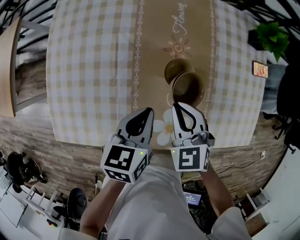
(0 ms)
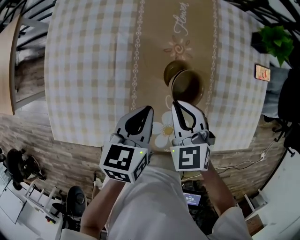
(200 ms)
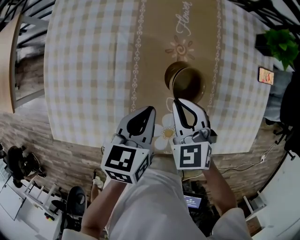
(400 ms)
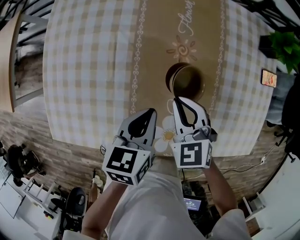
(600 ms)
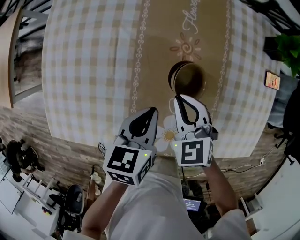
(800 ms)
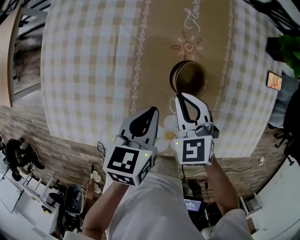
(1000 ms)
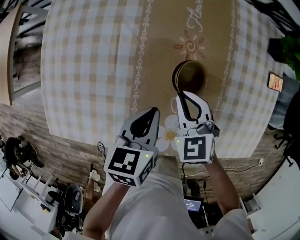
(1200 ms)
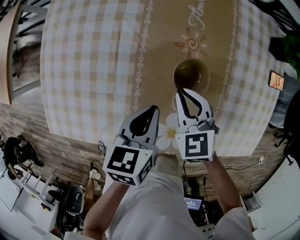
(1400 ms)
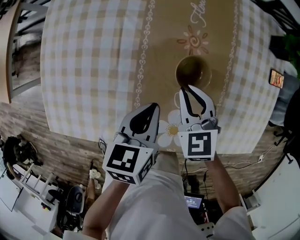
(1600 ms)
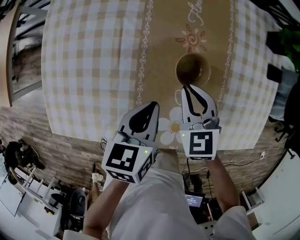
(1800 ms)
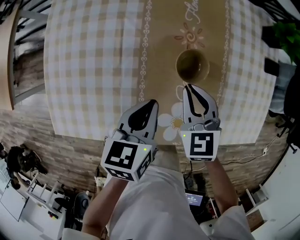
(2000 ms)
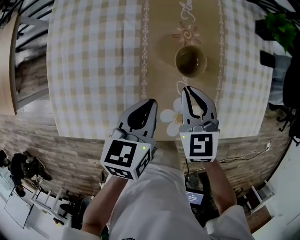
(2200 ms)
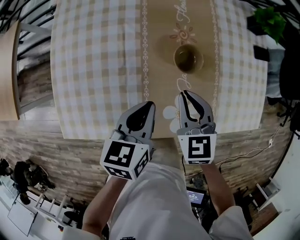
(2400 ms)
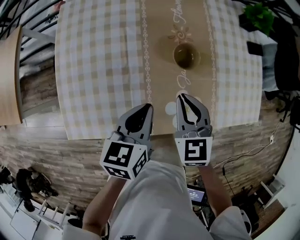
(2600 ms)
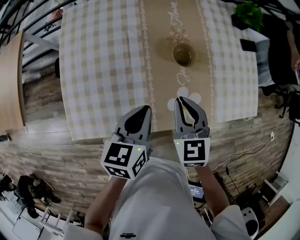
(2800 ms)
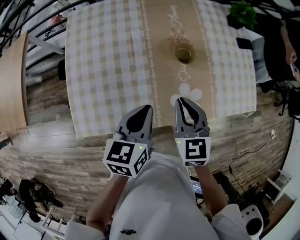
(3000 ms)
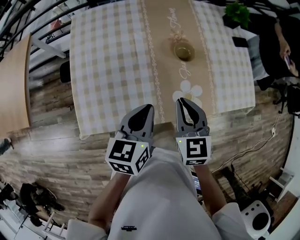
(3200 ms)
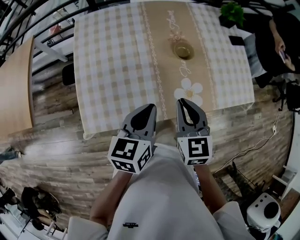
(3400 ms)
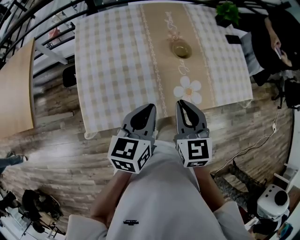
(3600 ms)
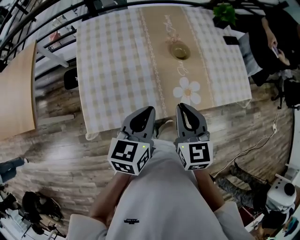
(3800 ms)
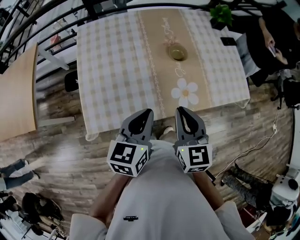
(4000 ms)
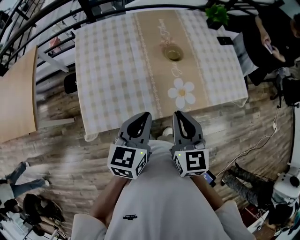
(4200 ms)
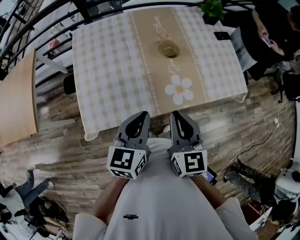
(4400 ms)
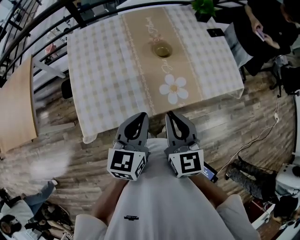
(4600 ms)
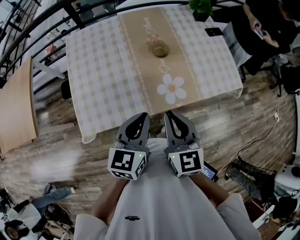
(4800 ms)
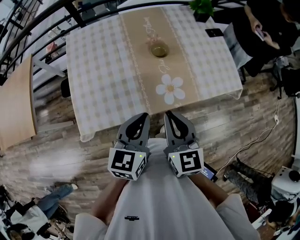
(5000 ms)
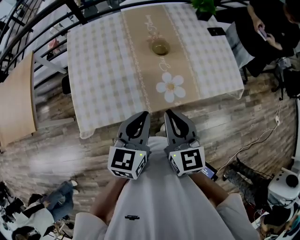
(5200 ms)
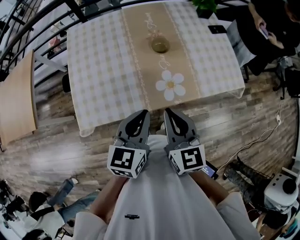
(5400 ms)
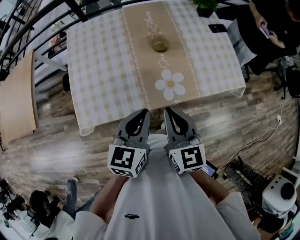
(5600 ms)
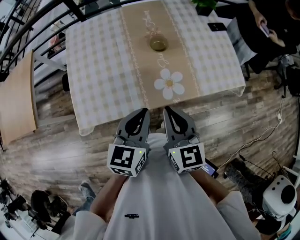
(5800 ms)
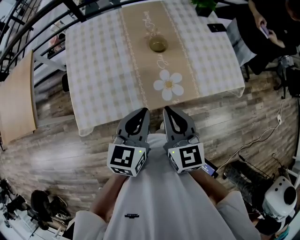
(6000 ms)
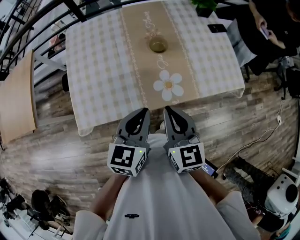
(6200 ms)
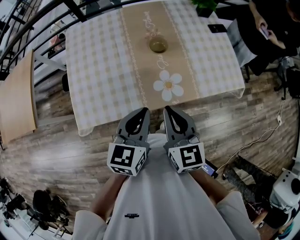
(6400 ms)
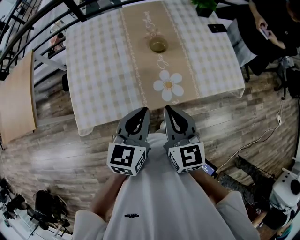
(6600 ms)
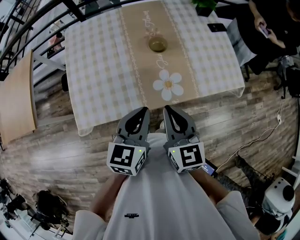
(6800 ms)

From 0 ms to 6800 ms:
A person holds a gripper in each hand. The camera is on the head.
From 0 ms to 1400 ms: The two grippers go some 5 cm downward.
From 1400 ms to 2800 ms: The right gripper heads upward and backward, covering roughly 20 cm, and changes its angle by some 30 degrees. Meanwhile the left gripper shifts about 20 cm upward, backward and to the left.
From 2800 ms to 4000 ms: Both grippers travel together backward and upward, approximately 20 cm.
From 4000 ms to 5400 ms: The left gripper travels to the right by about 10 cm. The right gripper changes place by about 5 cm.
From 5400 ms to 6800 ms: The grippers stay close to where they were, moving slightly.

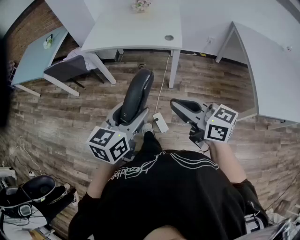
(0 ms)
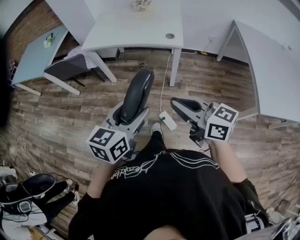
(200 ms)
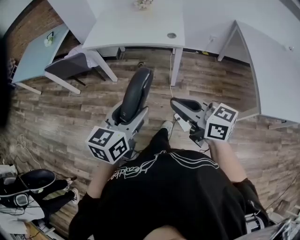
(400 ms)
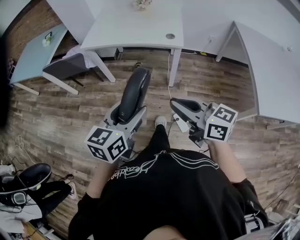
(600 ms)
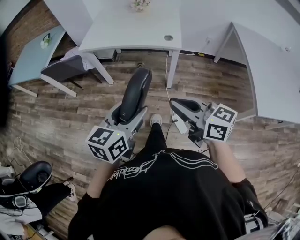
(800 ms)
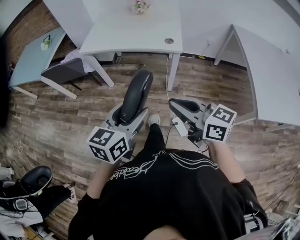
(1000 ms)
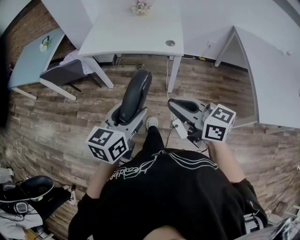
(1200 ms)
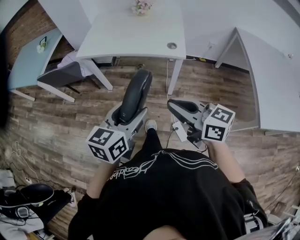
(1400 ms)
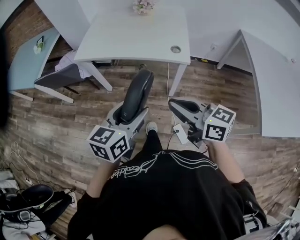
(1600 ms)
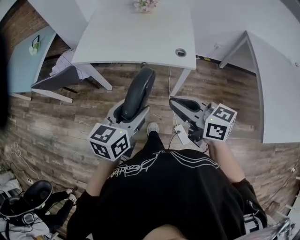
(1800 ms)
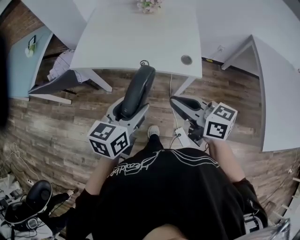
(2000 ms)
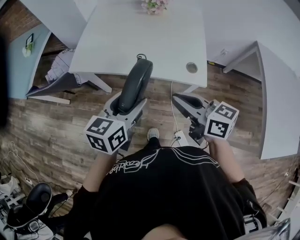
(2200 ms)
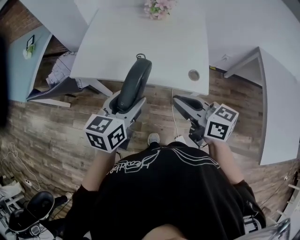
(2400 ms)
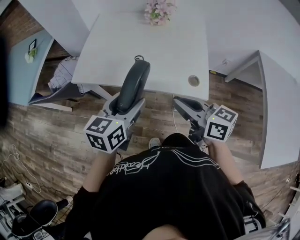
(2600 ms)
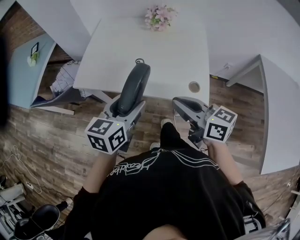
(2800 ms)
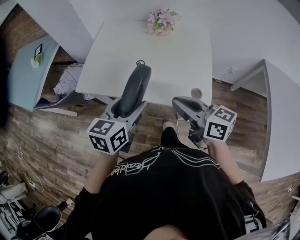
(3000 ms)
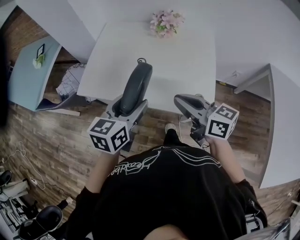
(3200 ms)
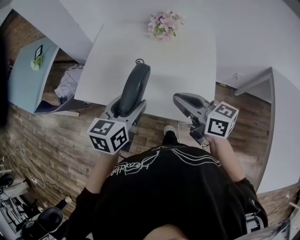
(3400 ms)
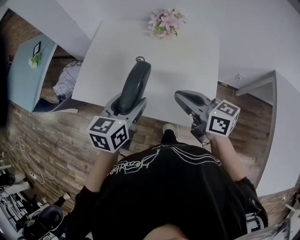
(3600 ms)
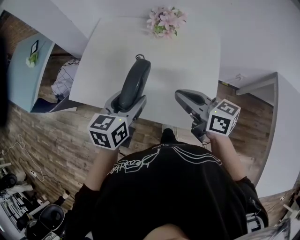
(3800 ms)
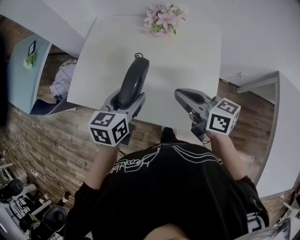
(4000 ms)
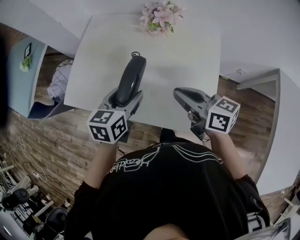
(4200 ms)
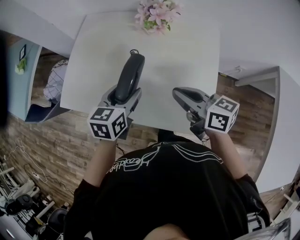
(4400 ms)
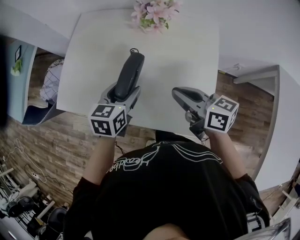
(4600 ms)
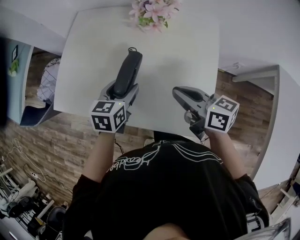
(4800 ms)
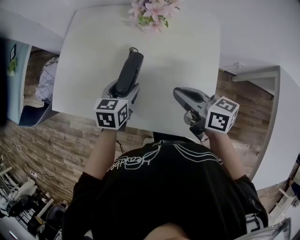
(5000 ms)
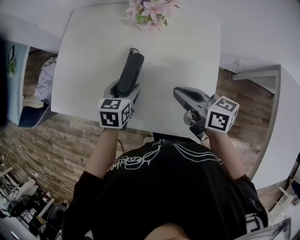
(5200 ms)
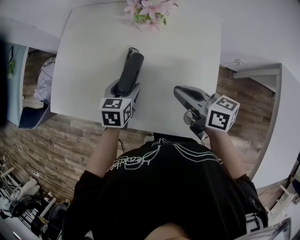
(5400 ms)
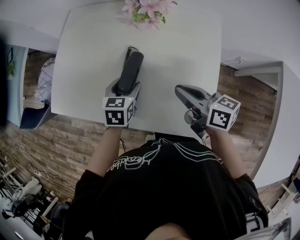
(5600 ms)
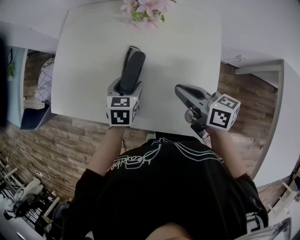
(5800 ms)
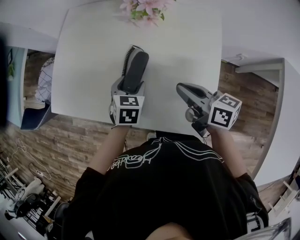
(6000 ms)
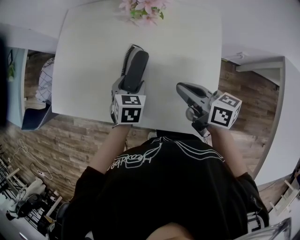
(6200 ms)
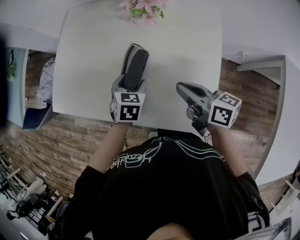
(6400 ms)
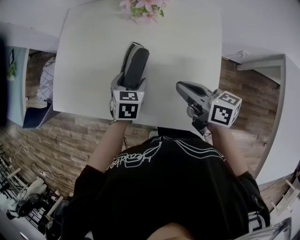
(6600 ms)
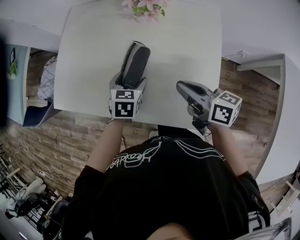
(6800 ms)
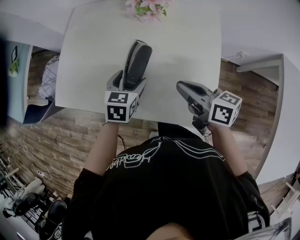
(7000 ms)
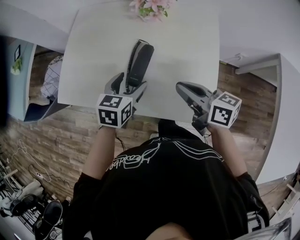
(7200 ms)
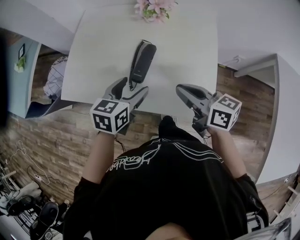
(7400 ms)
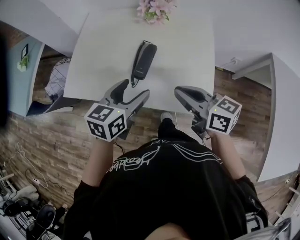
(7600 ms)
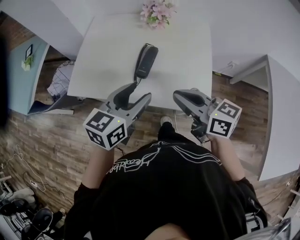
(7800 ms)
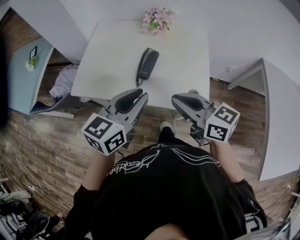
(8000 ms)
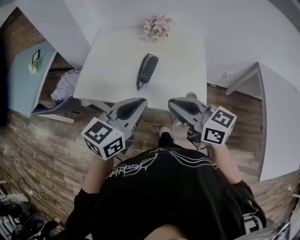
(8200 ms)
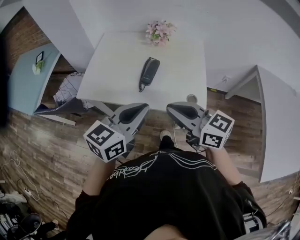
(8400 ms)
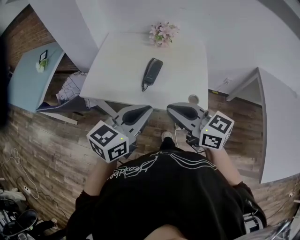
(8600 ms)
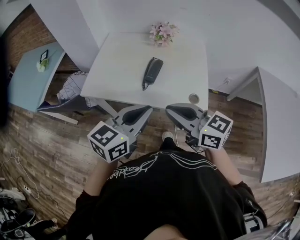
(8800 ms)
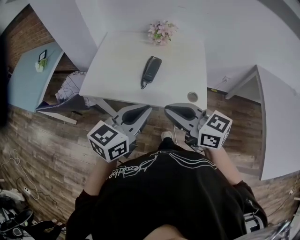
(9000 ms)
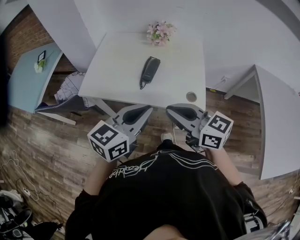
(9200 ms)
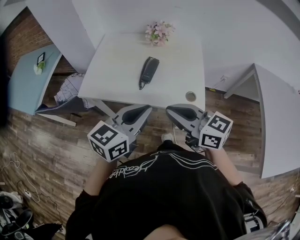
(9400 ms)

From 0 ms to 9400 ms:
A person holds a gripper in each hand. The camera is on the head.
From 0 ms to 1600 ms: Both grippers move forward, roughly 15 cm.
From 1600 ms to 3200 ms: The two grippers go roughly 35 cm forward.
From 3200 ms to 4800 ms: Both grippers travel together forward, downward and to the right, roughly 20 cm.
From 4800 ms to 6200 ms: The left gripper shifts about 10 cm downward, and rotates roughly 20 degrees.
From 6200 ms to 7800 ms: The left gripper heads upward and backward, covering approximately 30 cm, and tilts its fingers about 30 degrees upward. The right gripper moves backward, upward and to the left, about 20 cm, and changes its angle by approximately 20 degrees.
From 7800 ms to 9400 ms: The left gripper is displaced backward and upward by approximately 15 cm, and closes, while the right gripper heads backward, to the left and upward, covering some 15 cm.

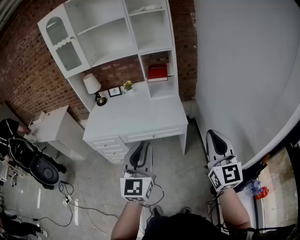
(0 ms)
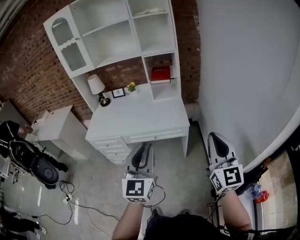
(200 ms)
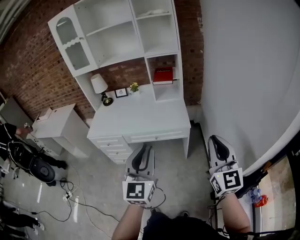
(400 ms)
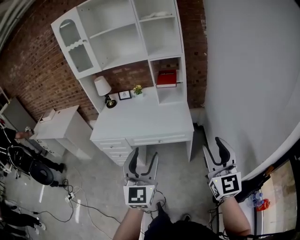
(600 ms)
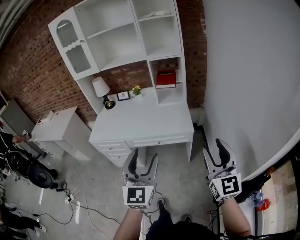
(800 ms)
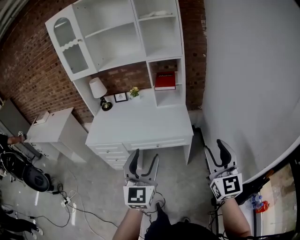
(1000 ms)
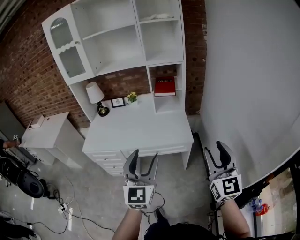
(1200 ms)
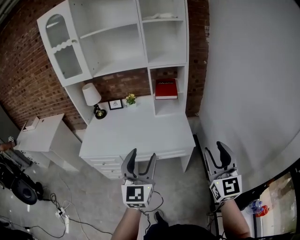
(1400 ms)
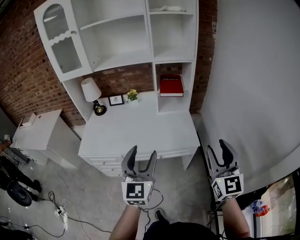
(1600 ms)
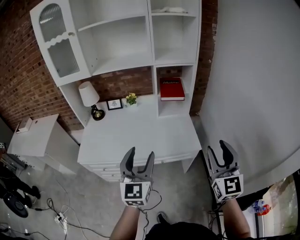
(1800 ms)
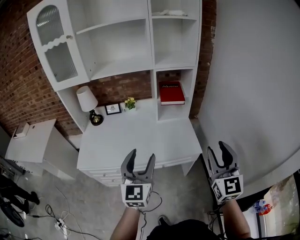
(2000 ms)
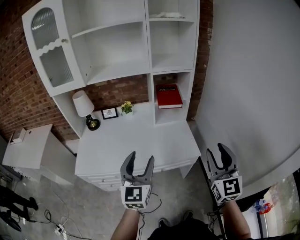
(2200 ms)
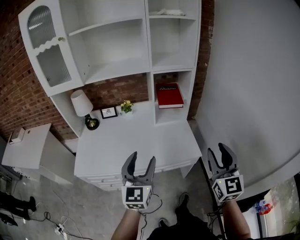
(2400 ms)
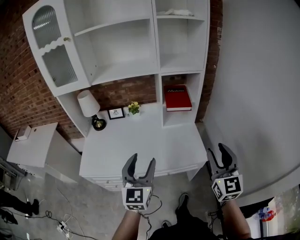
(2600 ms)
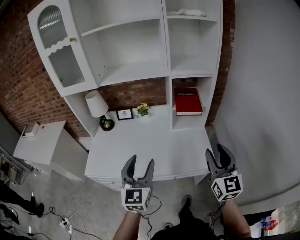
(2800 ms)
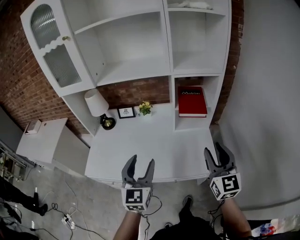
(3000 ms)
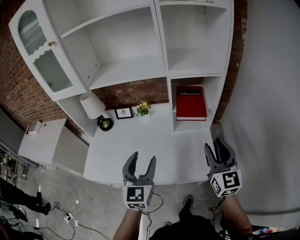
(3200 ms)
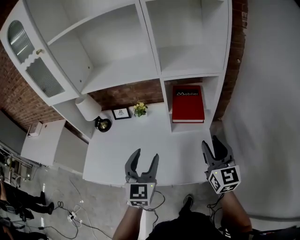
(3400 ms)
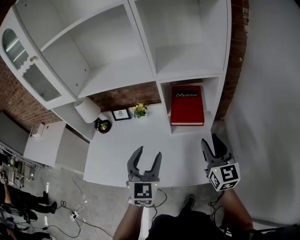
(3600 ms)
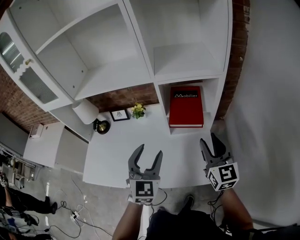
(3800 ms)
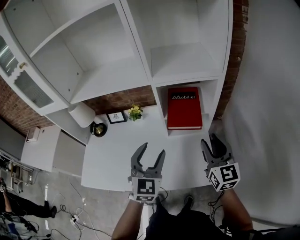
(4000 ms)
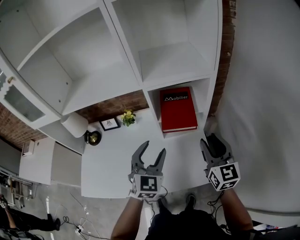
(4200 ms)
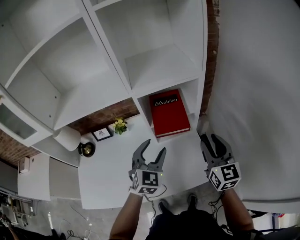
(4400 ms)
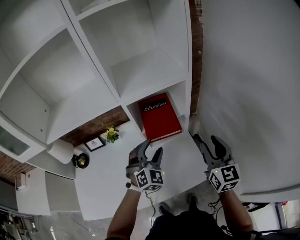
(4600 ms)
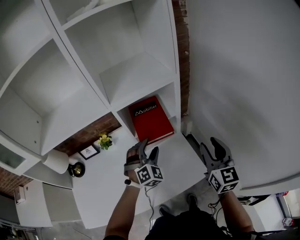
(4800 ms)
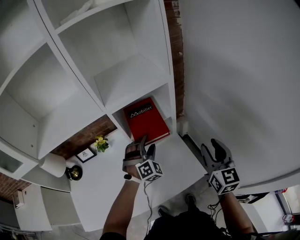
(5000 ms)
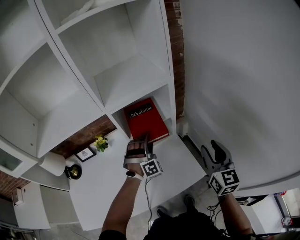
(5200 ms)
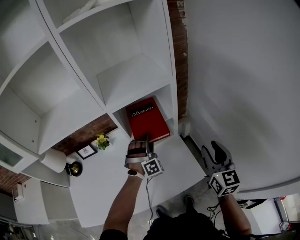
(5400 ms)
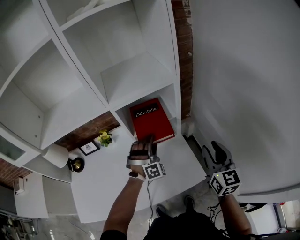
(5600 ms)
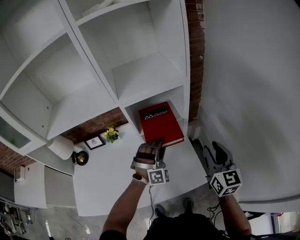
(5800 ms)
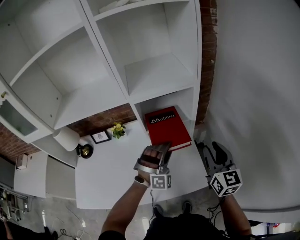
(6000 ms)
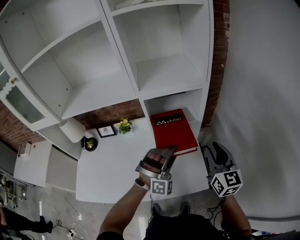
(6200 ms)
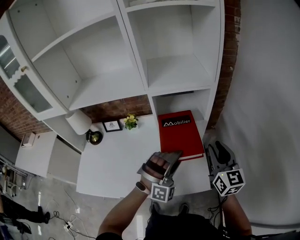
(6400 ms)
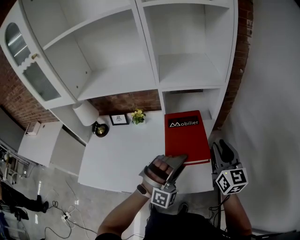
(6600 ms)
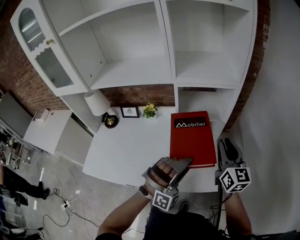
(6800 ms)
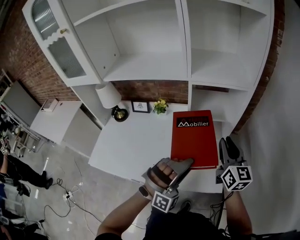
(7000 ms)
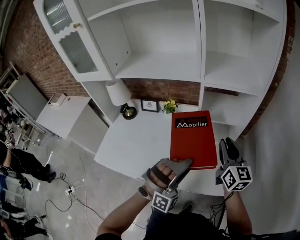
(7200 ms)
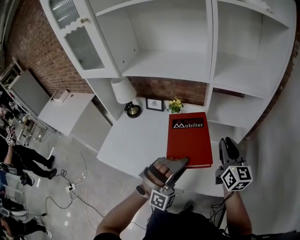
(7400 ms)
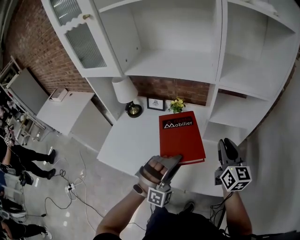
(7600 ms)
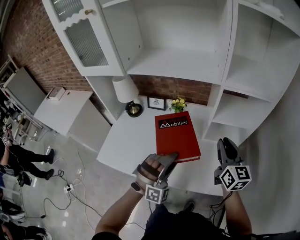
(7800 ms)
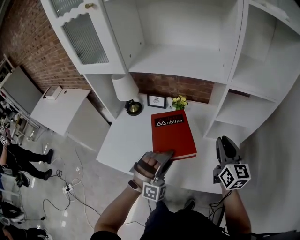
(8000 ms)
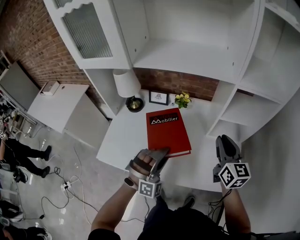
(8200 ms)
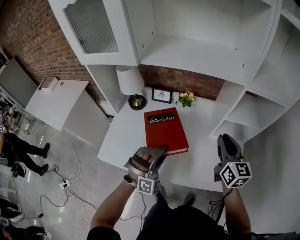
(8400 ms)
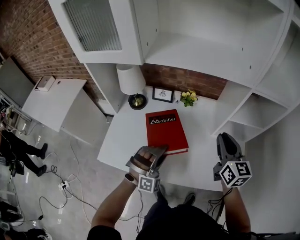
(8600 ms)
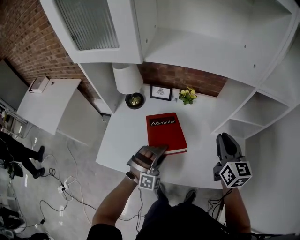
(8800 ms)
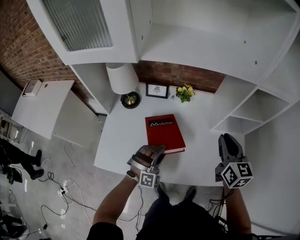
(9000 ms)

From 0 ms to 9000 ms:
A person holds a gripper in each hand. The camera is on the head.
From 0 ms to 1600 ms: Both grippers move forward and to the left, roughly 20 cm. The left gripper opens up. Meanwhile the right gripper opens up.
From 1600 ms to 3000 ms: The right gripper is displaced forward by approximately 25 cm; the left gripper is displaced forward and to the left by some 20 cm.
From 3000 ms to 4400 ms: The grippers both shift forward and to the right by roughly 25 cm. The left gripper swivels about 30 degrees.
From 4400 ms to 6000 ms: The left gripper shifts some 10 cm to the right, travels forward and back again, approximately 10 cm each way, and twists about 60 degrees clockwise, seen from behind.
From 6000 ms to 7600 ms: The right gripper is displaced to the left by roughly 20 cm, and swivels approximately 20 degrees, while the left gripper moves to the left and backward, roughly 25 cm.
From 7600 ms to 9000 ms: The left gripper goes roughly 30 cm to the left, downward and forward. The right gripper moves to the left, approximately 15 cm.
